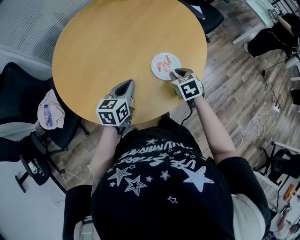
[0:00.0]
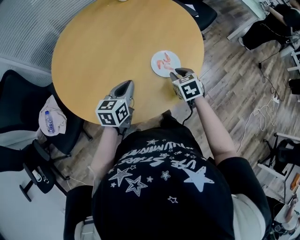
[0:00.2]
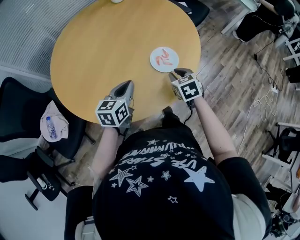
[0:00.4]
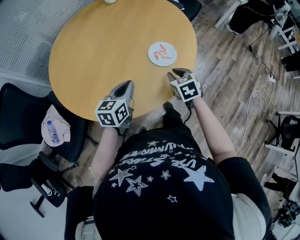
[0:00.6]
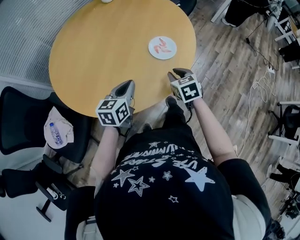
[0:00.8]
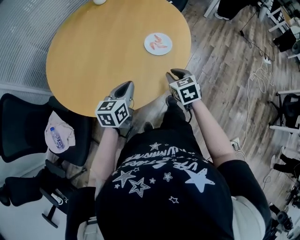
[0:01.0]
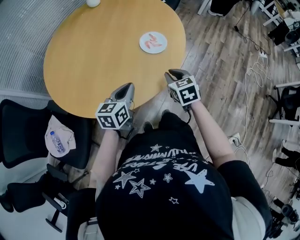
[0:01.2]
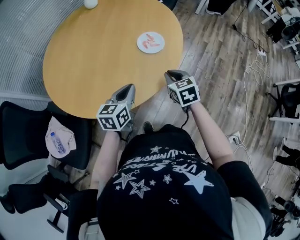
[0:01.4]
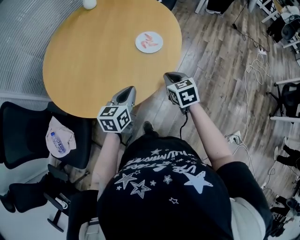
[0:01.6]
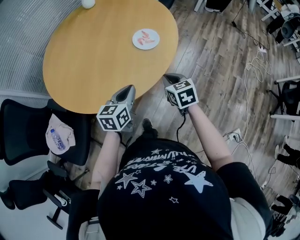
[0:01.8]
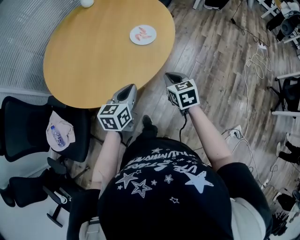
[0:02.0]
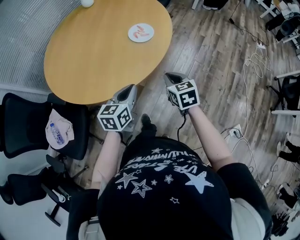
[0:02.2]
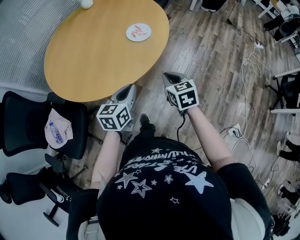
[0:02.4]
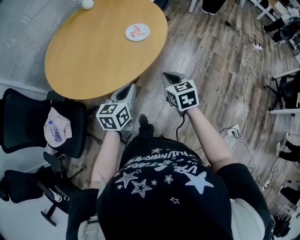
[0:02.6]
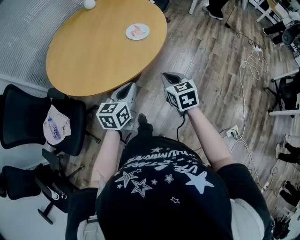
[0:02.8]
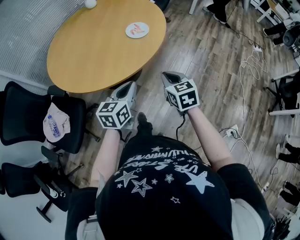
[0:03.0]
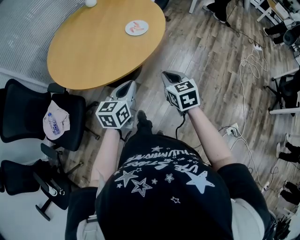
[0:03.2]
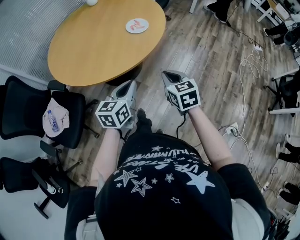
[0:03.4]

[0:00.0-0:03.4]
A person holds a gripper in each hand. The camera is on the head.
0:00.0 to 0:01.6: The two grippers go approximately 15 cm backward. The left gripper rotates approximately 20 degrees. The right gripper swivels about 30 degrees, and closes.
0:01.6 to 0:03.4: The grippers both shift backward by about 20 cm.

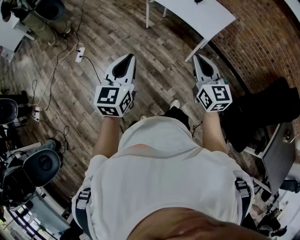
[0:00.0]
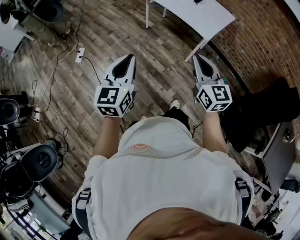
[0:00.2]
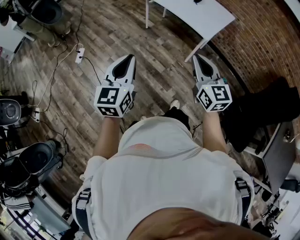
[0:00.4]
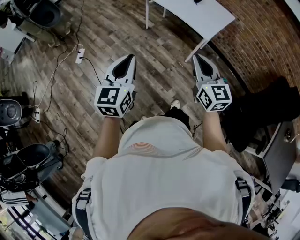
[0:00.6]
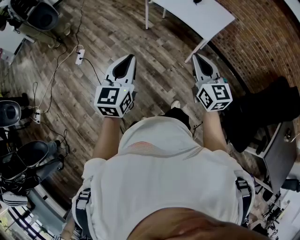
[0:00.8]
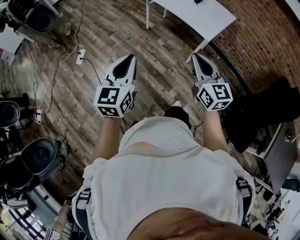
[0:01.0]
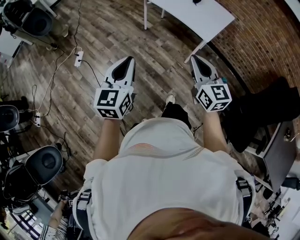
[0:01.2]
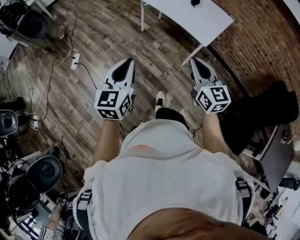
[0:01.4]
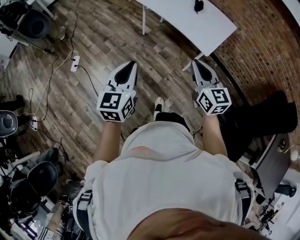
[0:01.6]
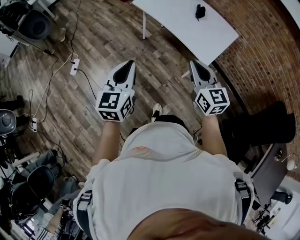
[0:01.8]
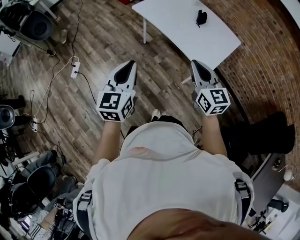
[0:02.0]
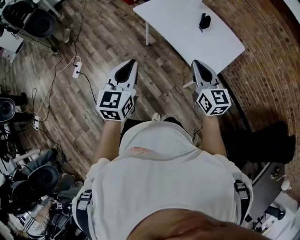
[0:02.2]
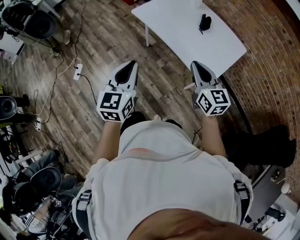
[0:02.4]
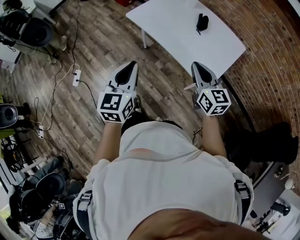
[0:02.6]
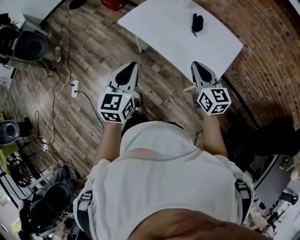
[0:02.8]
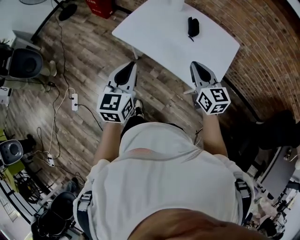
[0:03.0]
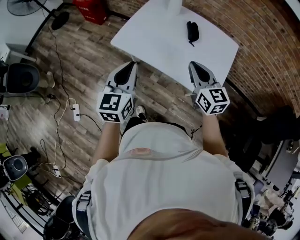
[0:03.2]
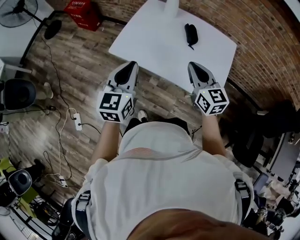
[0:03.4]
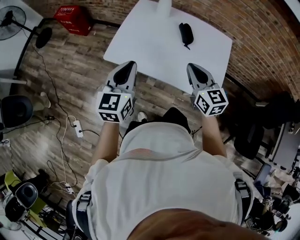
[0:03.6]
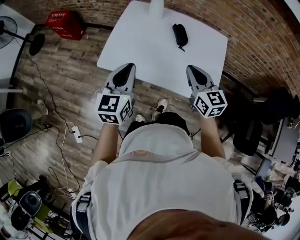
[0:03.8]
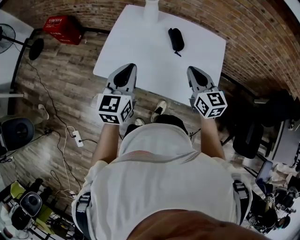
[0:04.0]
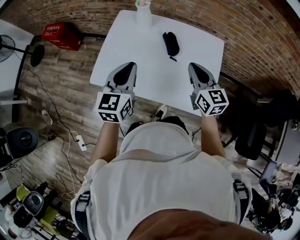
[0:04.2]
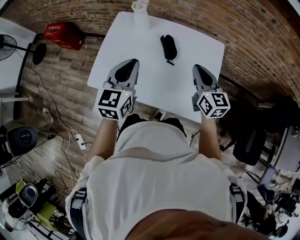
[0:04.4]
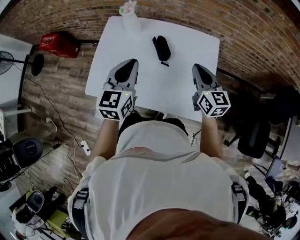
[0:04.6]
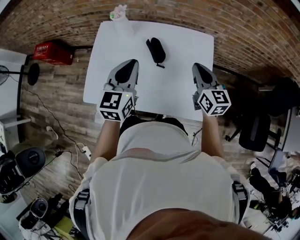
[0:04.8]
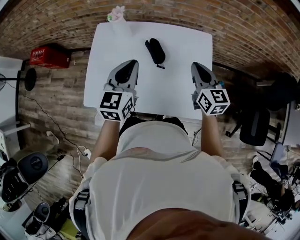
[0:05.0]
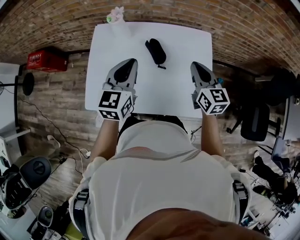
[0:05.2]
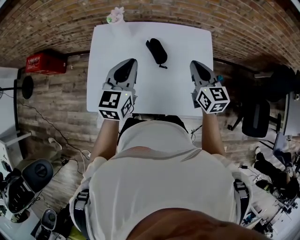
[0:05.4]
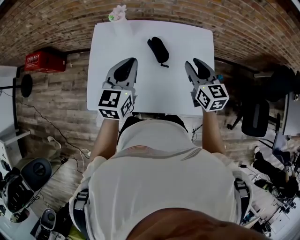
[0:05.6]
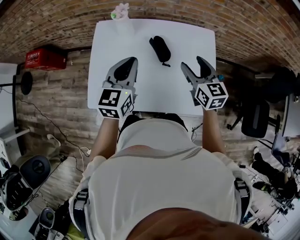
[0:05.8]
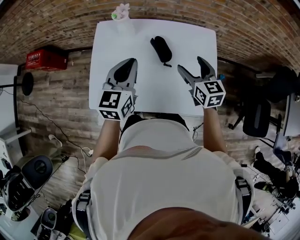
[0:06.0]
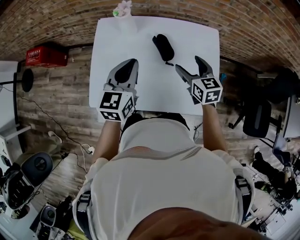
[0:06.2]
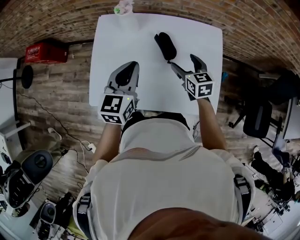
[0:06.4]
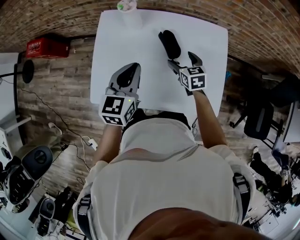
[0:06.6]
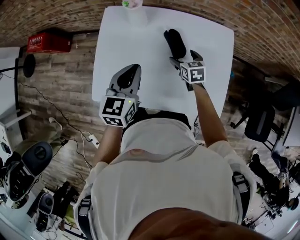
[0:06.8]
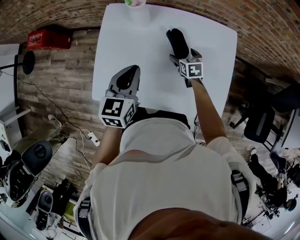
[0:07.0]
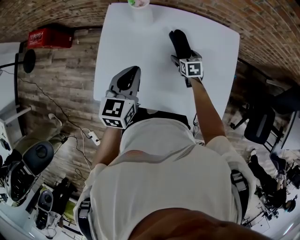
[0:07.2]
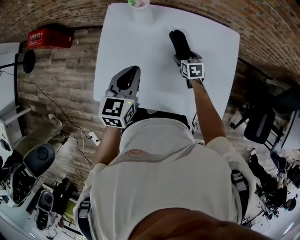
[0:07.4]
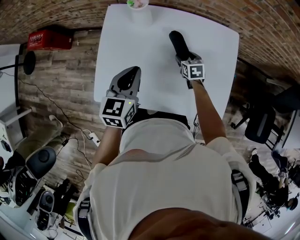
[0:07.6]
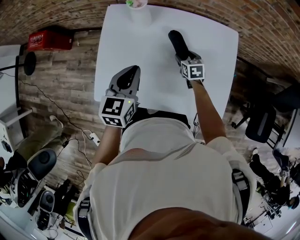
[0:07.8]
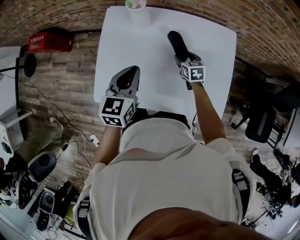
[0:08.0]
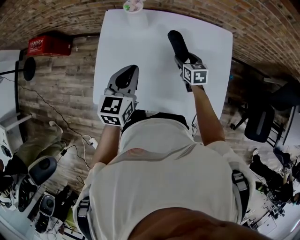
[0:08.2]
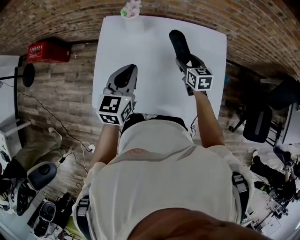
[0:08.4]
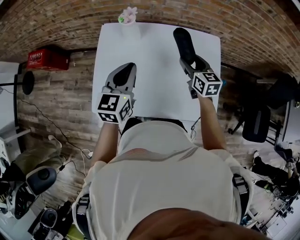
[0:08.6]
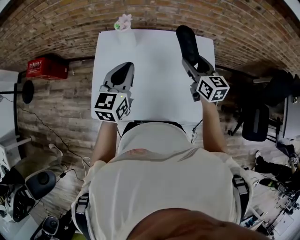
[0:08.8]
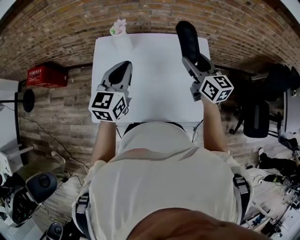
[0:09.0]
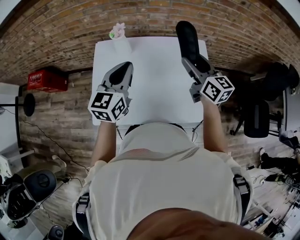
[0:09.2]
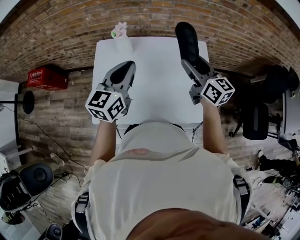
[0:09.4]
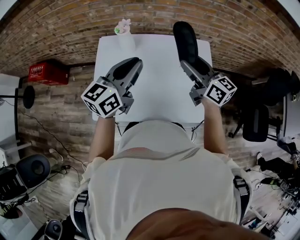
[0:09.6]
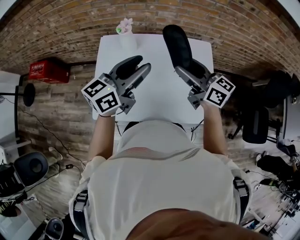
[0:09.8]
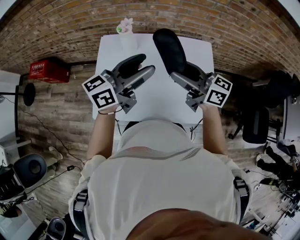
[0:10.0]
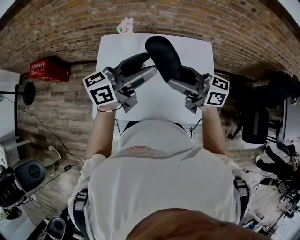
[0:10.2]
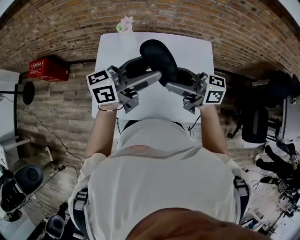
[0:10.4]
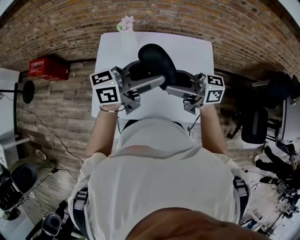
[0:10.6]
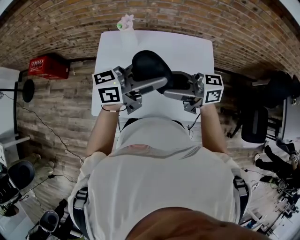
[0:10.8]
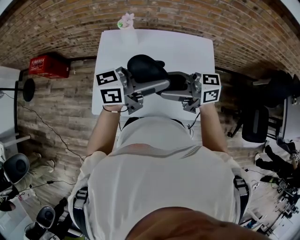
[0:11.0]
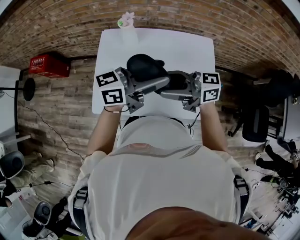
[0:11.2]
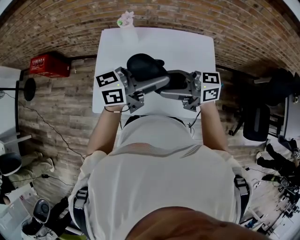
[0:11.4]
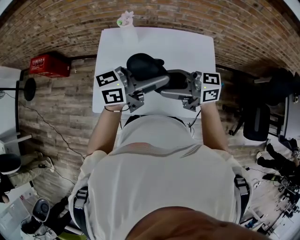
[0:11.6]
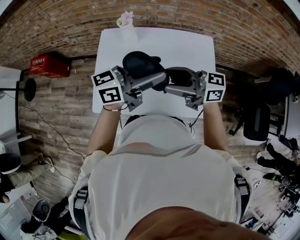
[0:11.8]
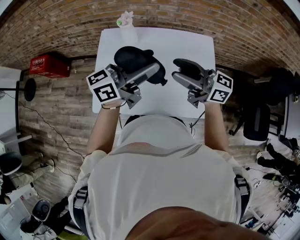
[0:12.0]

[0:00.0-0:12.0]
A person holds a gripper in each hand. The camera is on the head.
0:00.0 to 0:01.6: The two grippers go some 15 cm forward.
0:01.6 to 0:03.0: Both grippers move forward, about 35 cm.
0:03.0 to 0:04.4: The left gripper heads forward, covering some 30 cm, and swivels roughly 20 degrees; the right gripper travels forward and to the right by some 25 cm, and swivels about 20 degrees.
0:04.4 to 0:06.0: The right gripper shifts by approximately 5 cm, and opens up. The left gripper shifts some 10 cm forward.
0:06.0 to 0:07.6: The right gripper goes some 25 cm downward, and turns by approximately 30 degrees, while the left gripper travels downward by approximately 10 cm.
0:07.6 to 0:09.0: The right gripper goes roughly 30 cm upward, and tips its fingers upward by some 40 degrees. The left gripper goes some 10 cm upward.
0:09.0 to 0:10.4: The right gripper shifts by some 15 cm, and changes its angle by approximately 50 degrees, while the left gripper changes place by approximately 10 cm, swivels some 50 degrees, and opens.
0:10.4 to 0:12.0: The grippers make only small movements.

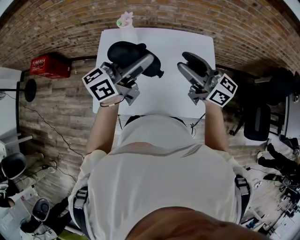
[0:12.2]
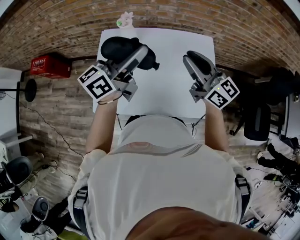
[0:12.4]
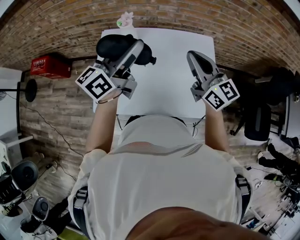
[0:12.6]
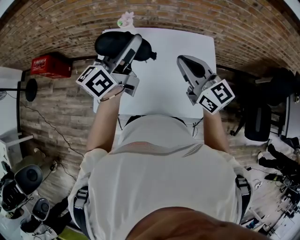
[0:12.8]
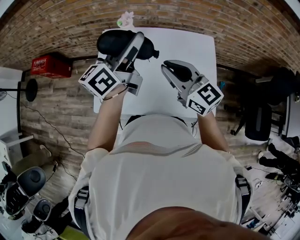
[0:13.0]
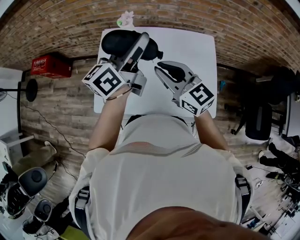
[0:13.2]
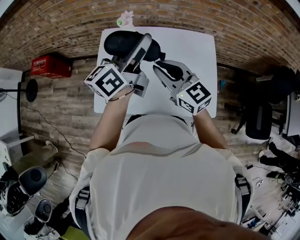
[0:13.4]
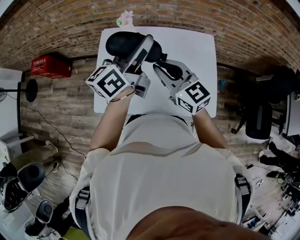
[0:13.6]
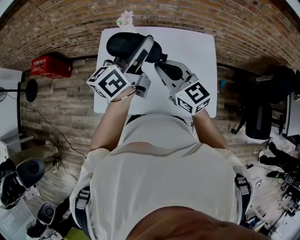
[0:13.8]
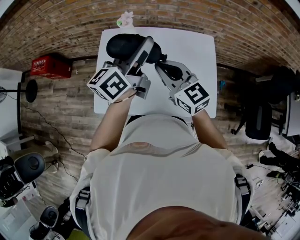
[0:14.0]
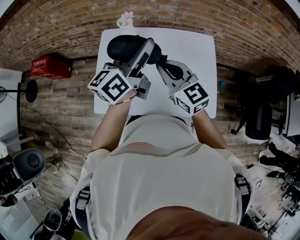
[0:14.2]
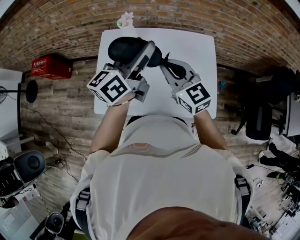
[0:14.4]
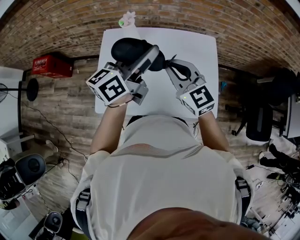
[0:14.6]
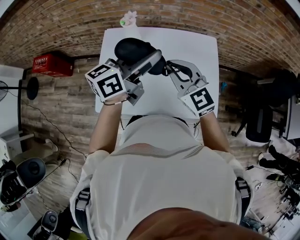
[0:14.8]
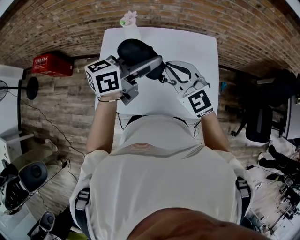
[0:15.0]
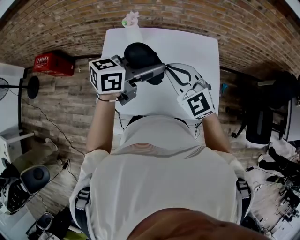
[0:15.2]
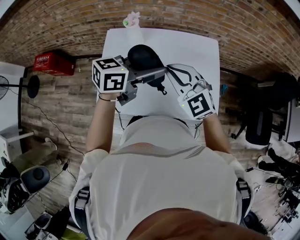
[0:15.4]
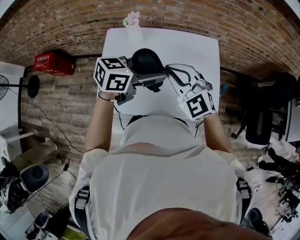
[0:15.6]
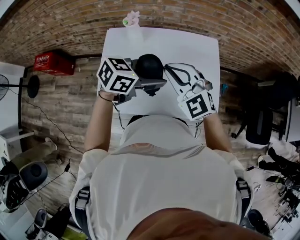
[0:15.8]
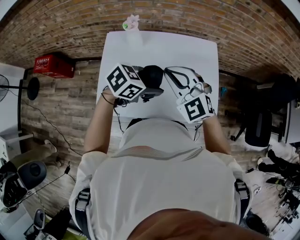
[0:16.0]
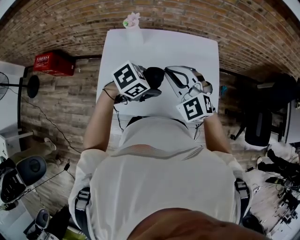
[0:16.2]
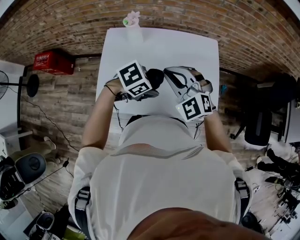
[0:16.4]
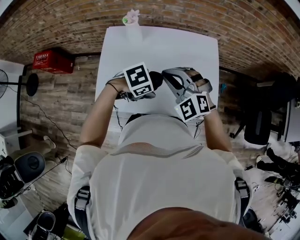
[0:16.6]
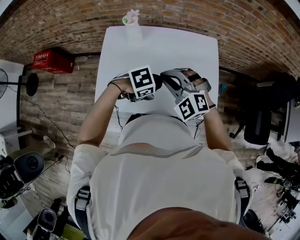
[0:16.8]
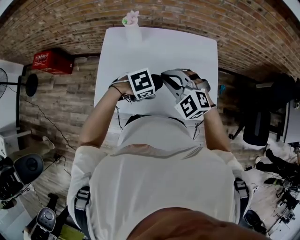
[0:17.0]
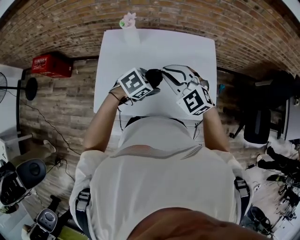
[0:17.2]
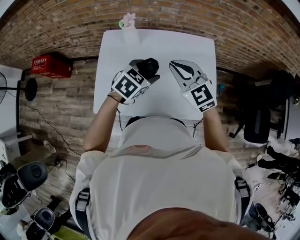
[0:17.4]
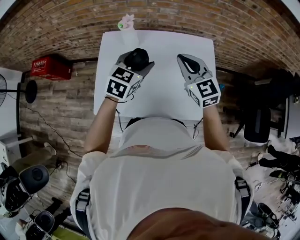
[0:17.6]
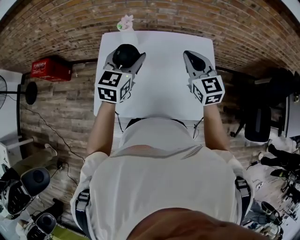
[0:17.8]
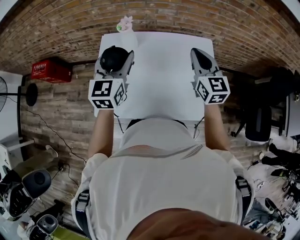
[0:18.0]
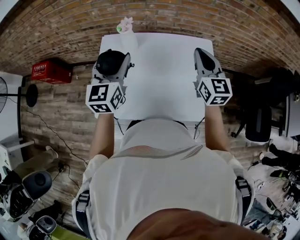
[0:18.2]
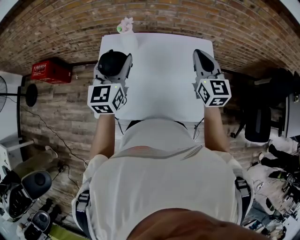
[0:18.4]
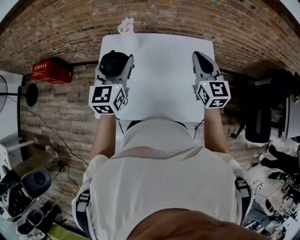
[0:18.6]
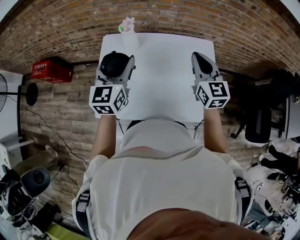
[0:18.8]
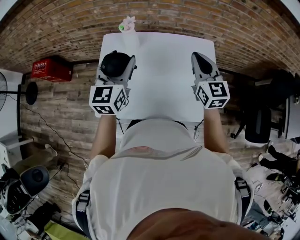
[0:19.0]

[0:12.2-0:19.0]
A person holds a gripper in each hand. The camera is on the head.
0:12.2 to 0:13.6: The right gripper shifts some 10 cm to the left, and swivels roughly 30 degrees.
0:13.6 to 0:15.0: The right gripper changes its angle by about 20 degrees. Meanwhile the left gripper shifts by about 5 cm, and rotates roughly 30 degrees.
0:15.0 to 0:16.2: The left gripper is displaced downward by some 15 cm, and tilts its fingers approximately 50 degrees downward.
0:16.2 to 0:17.6: The left gripper changes place by some 10 cm, and swivels approximately 50 degrees. The right gripper changes place by roughly 10 cm, and swivels about 30 degrees.
0:17.6 to 0:19.0: The right gripper is displaced to the right by about 5 cm. Meanwhile the left gripper moves to the left and upward, some 10 cm, and changes its angle by about 30 degrees.

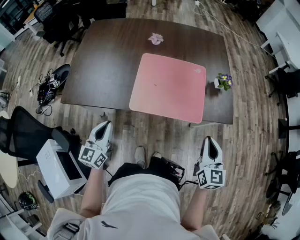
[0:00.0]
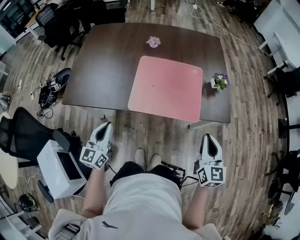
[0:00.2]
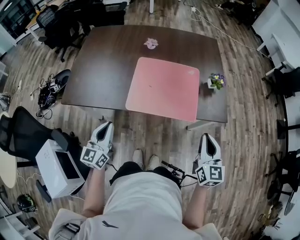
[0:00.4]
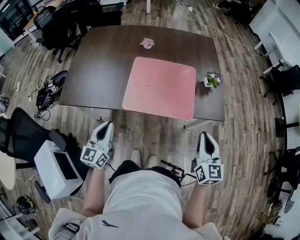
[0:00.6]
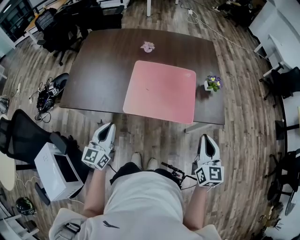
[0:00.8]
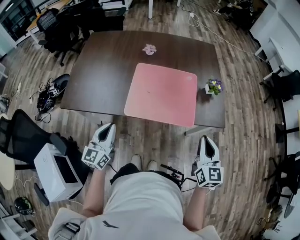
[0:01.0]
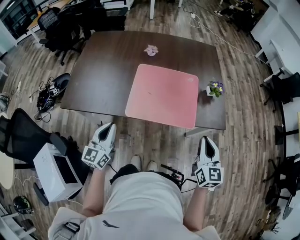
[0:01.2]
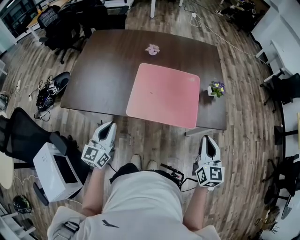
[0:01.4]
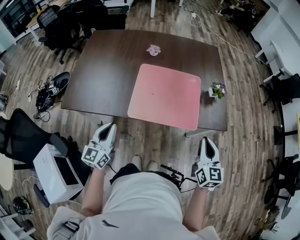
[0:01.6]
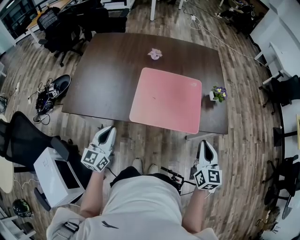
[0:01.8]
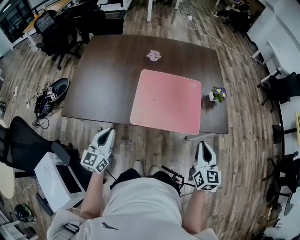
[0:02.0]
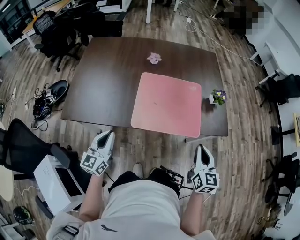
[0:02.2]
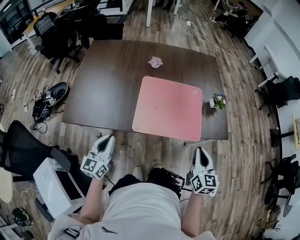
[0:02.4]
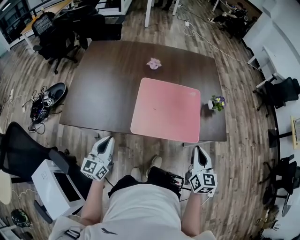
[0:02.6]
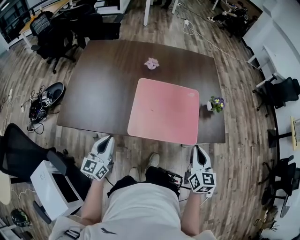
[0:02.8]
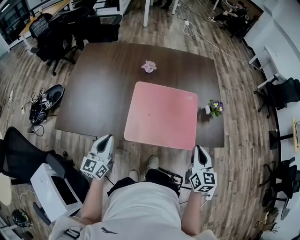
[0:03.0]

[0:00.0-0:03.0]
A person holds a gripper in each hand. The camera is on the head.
0:01.6 to 0:03.0: Both grippers travel together forward, about 5 cm.
